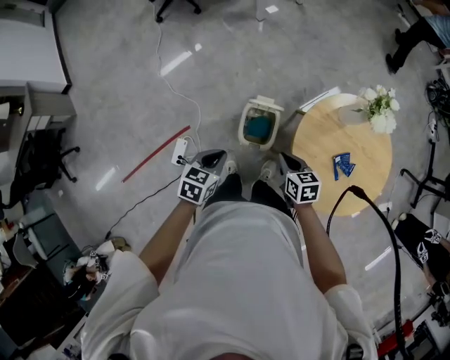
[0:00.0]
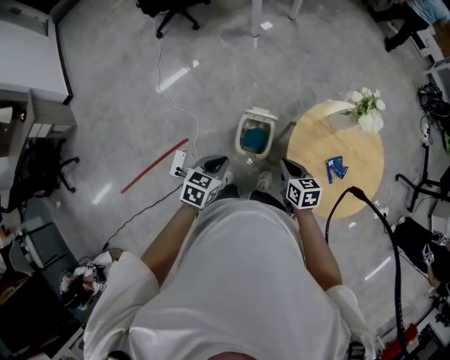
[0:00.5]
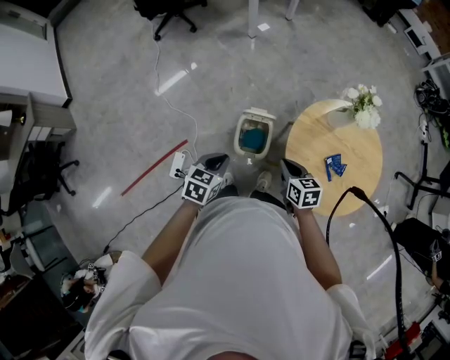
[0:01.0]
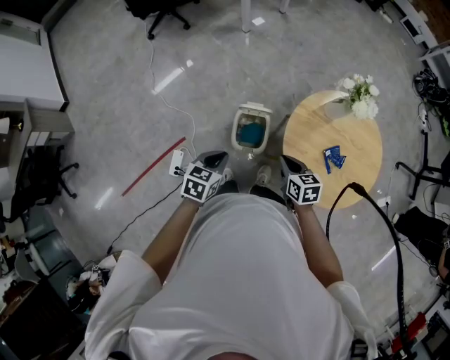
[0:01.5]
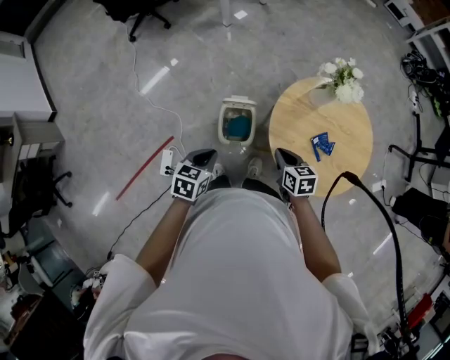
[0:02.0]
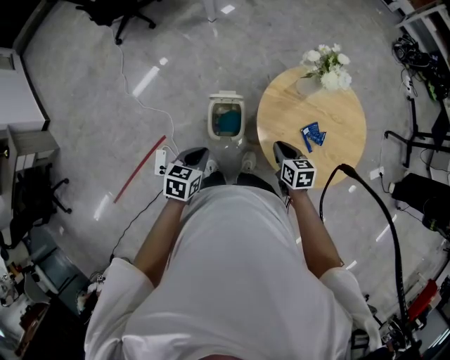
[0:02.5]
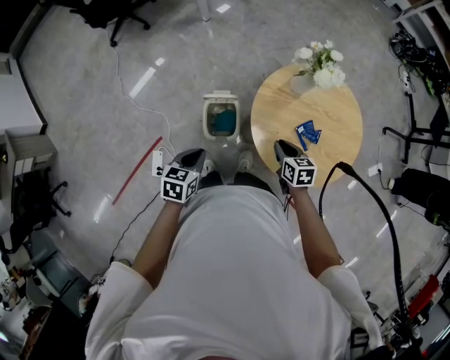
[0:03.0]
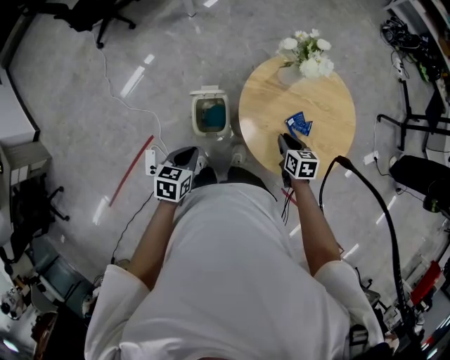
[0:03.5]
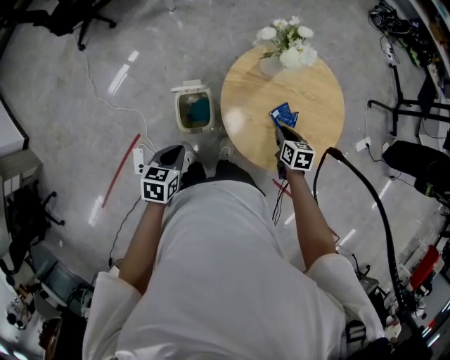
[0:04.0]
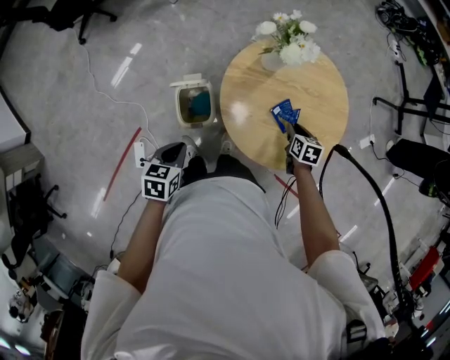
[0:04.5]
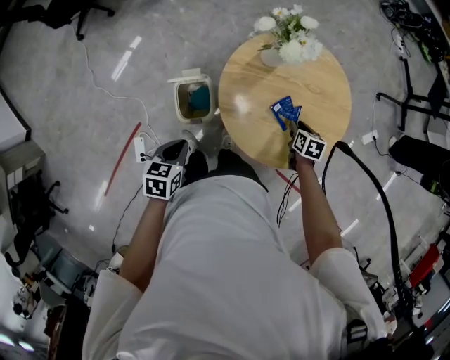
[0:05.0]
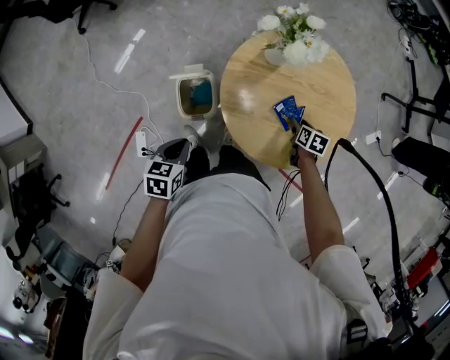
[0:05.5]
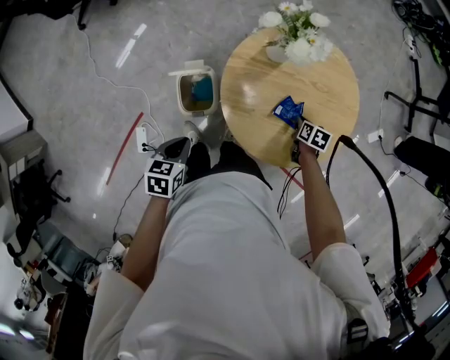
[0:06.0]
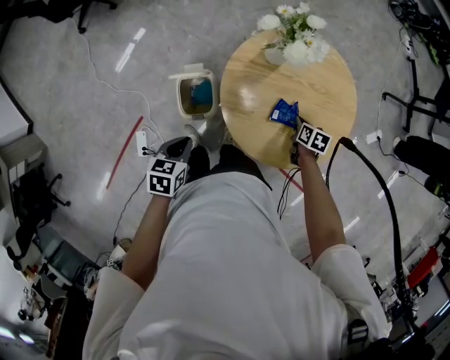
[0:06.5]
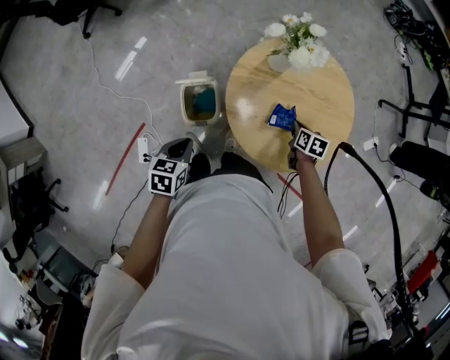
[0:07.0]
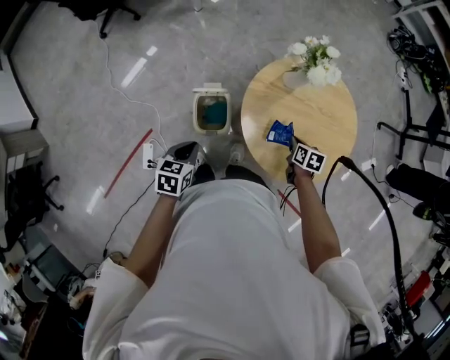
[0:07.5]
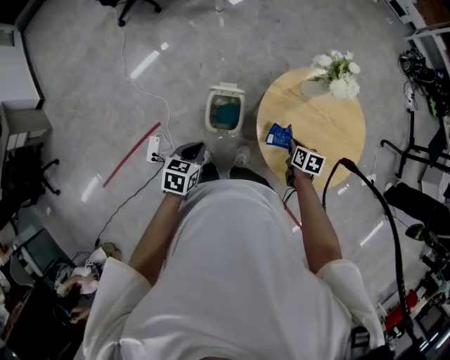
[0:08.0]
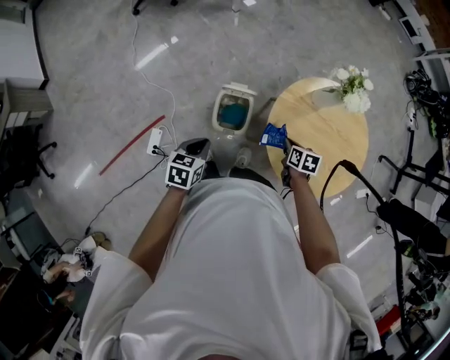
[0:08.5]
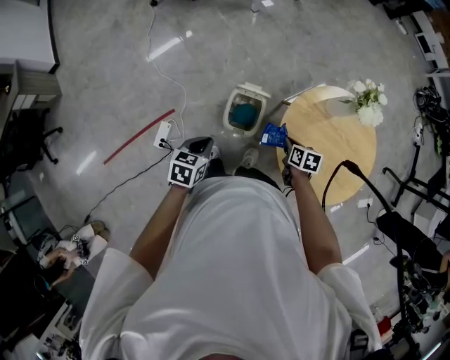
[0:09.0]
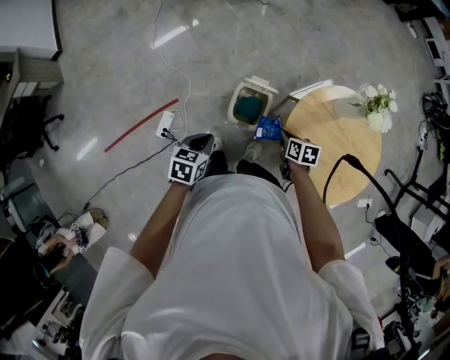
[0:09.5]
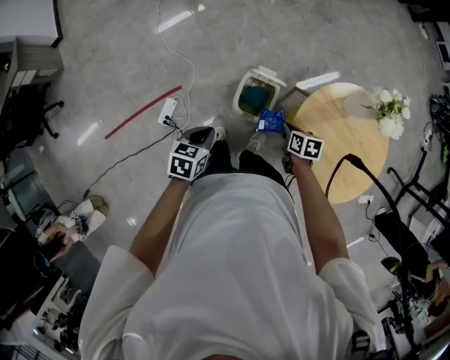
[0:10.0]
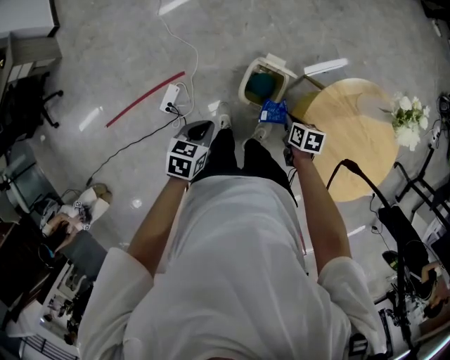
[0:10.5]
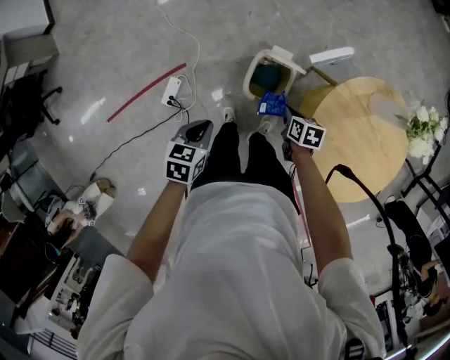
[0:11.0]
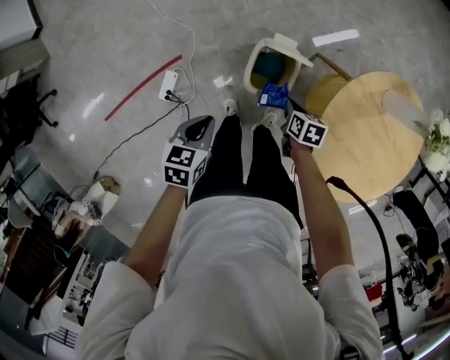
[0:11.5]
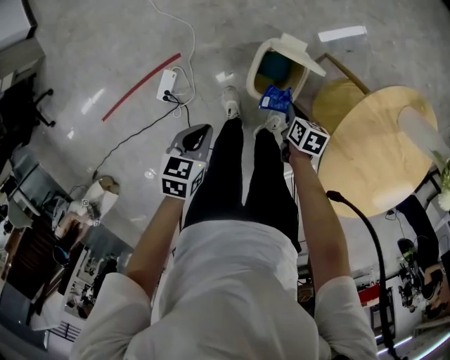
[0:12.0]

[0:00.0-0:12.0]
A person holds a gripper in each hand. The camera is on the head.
0:00.0 to 0:02.0: The right gripper shifts about 10 cm to the right; the left gripper shifts some 5 cm to the right.
0:02.0 to 0:04.0: The right gripper goes approximately 20 cm to the right, and turns by about 20 degrees. The left gripper is displaced to the right by roughly 5 cm.
0:04.0 to 0:06.0: The right gripper is displaced downward and to the right by roughly 15 cm, and opens and closes again.
0:06.0 to 0:08.0: The left gripper heads to the left, covering some 10 cm. The right gripper travels to the left and upward by about 20 cm.
0:08.0 to 0:10.0: The right gripper shifts roughly 20 cm to the left, and turns by roughly 20 degrees. Meanwhile the left gripper moves to the left, roughly 10 cm.
0:10.0 to 0:12.0: Both grippers travel together downward, some 20 cm.

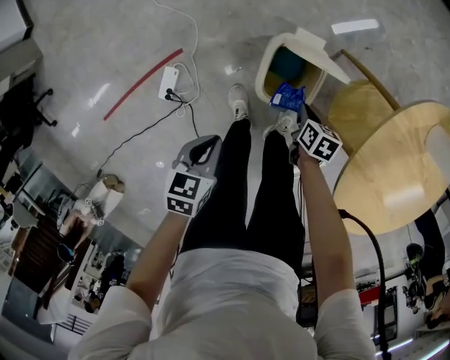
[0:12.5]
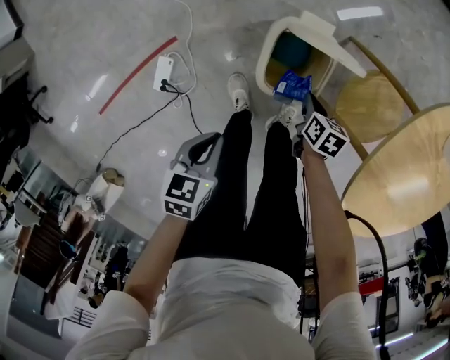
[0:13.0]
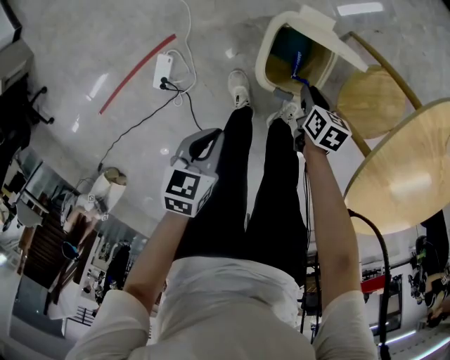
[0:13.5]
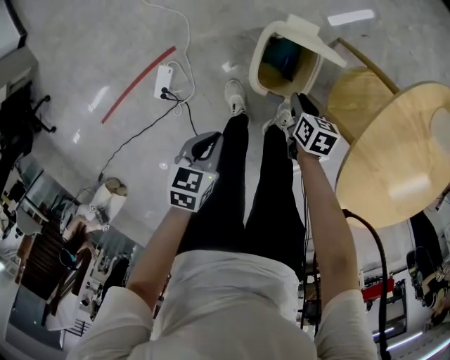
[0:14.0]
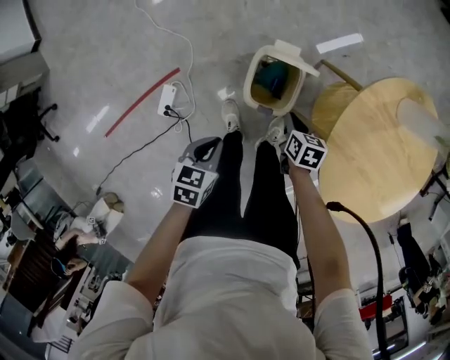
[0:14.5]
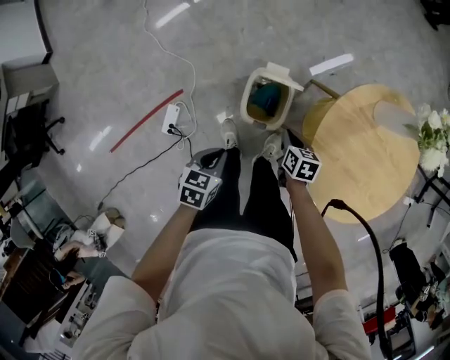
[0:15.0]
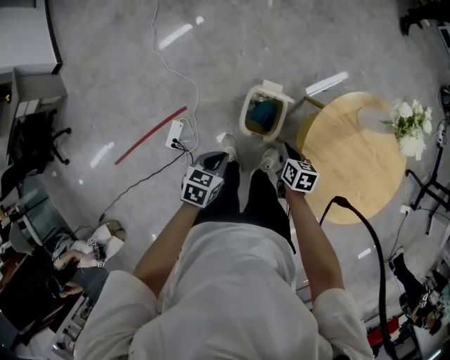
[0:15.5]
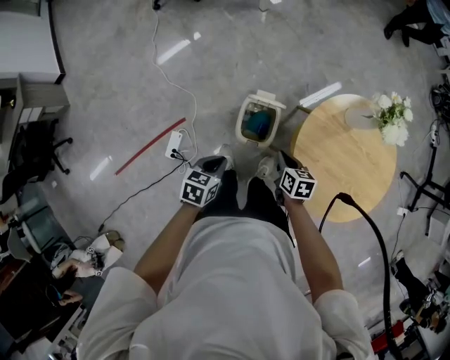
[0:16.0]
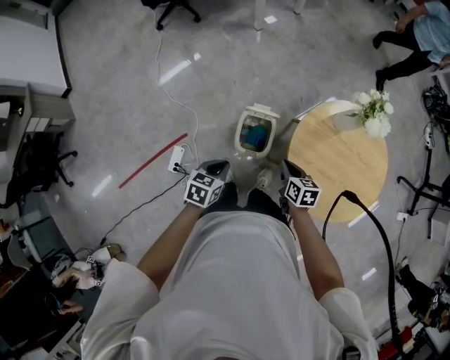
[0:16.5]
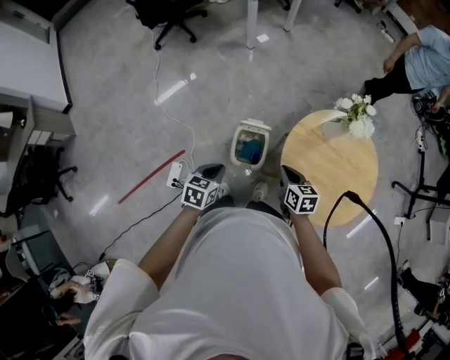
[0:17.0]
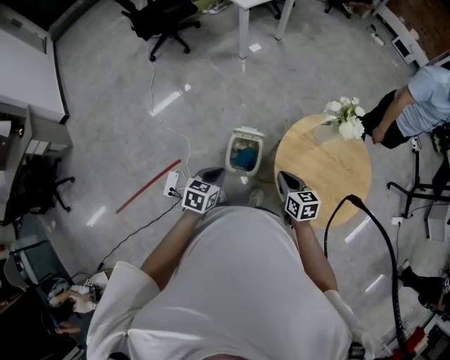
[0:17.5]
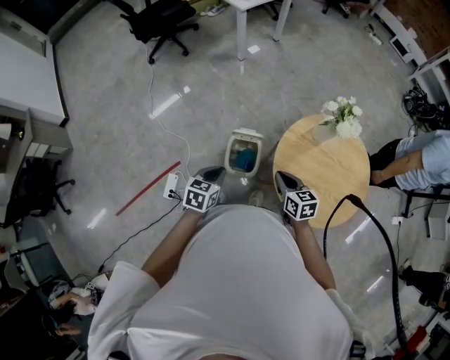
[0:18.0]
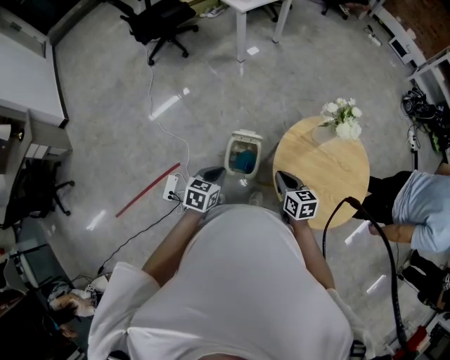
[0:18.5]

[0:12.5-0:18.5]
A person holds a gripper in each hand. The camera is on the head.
0:12.5 to 0:14.5: The left gripper moves about 5 cm. Meanwhile the right gripper shifts about 10 cm upward.
0:14.5 to 0:16.5: The grippers both shift upward by about 20 cm.
0:16.5 to 0:18.5: The right gripper moves upward, roughly 10 cm, while the left gripper is displaced upward by about 5 cm.

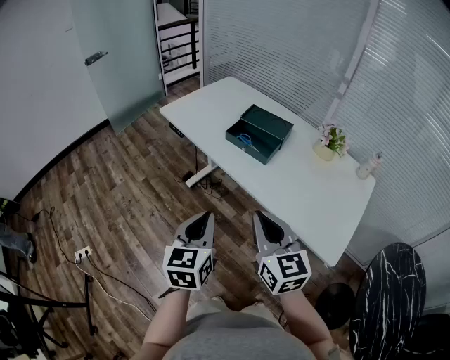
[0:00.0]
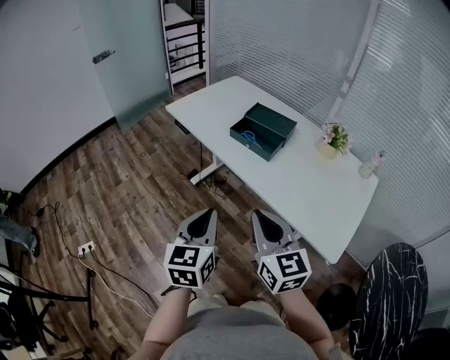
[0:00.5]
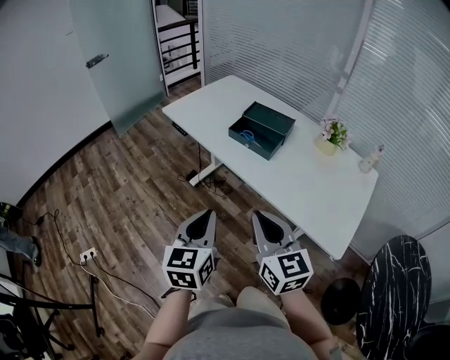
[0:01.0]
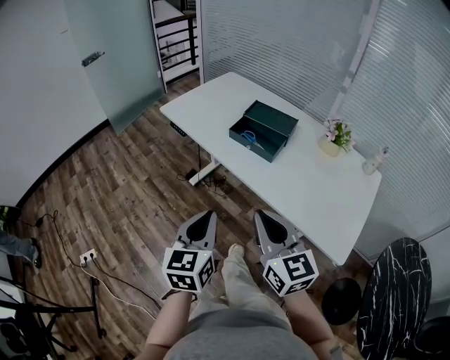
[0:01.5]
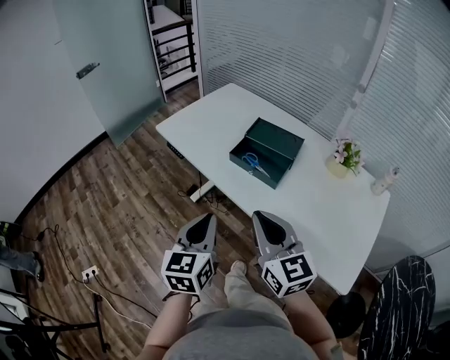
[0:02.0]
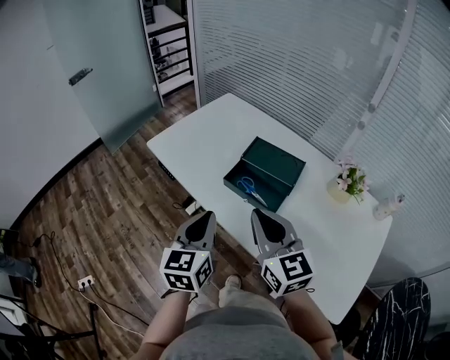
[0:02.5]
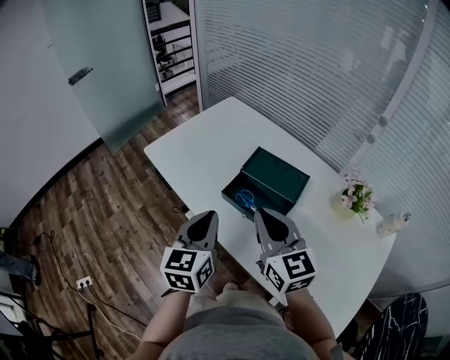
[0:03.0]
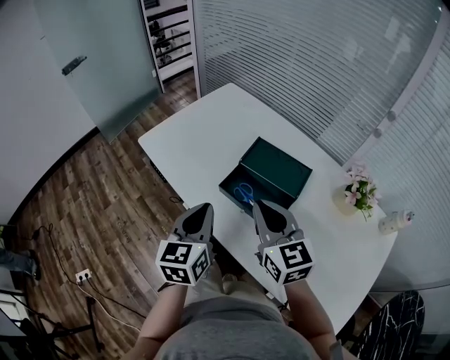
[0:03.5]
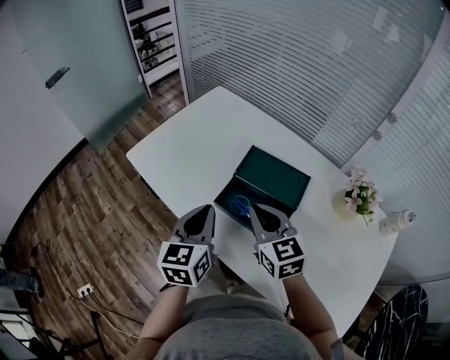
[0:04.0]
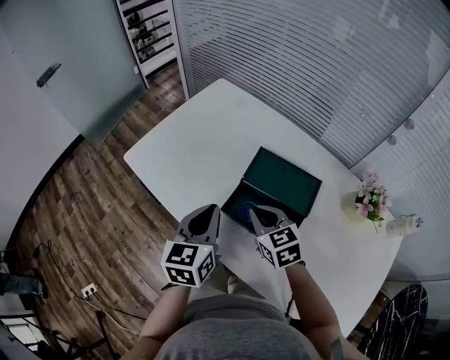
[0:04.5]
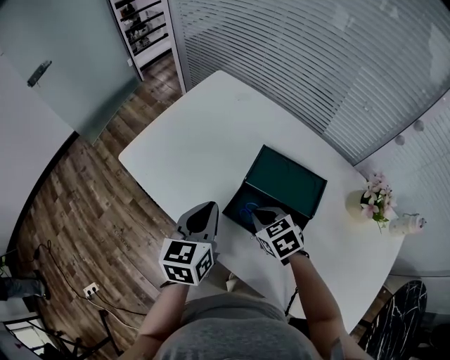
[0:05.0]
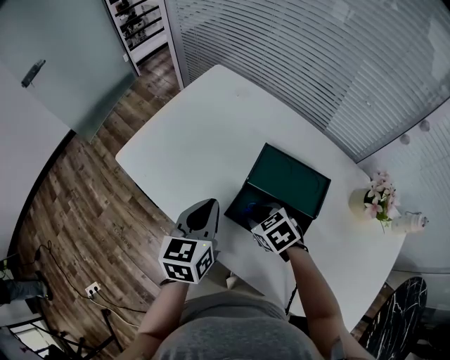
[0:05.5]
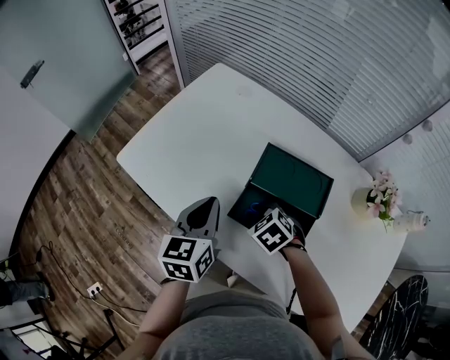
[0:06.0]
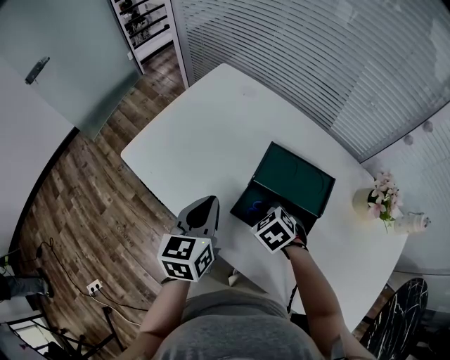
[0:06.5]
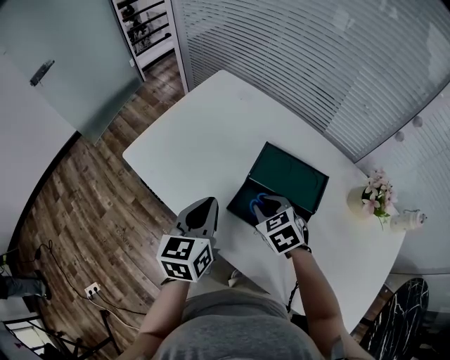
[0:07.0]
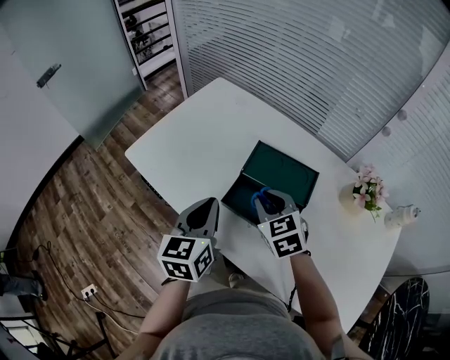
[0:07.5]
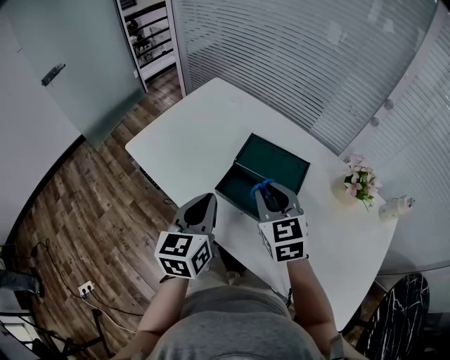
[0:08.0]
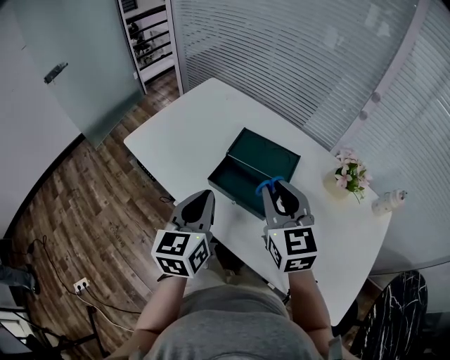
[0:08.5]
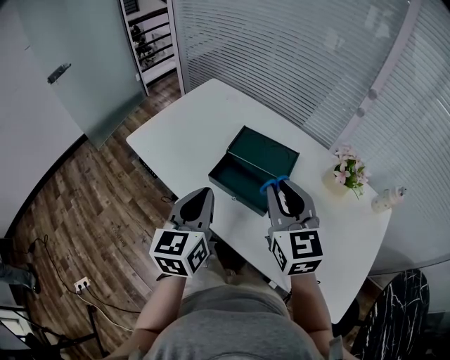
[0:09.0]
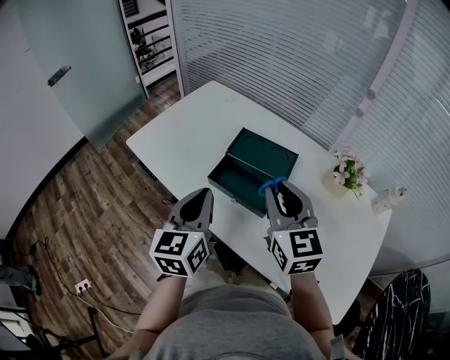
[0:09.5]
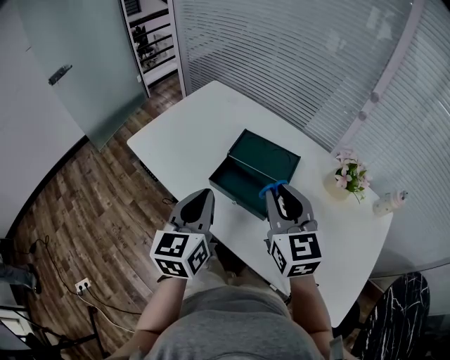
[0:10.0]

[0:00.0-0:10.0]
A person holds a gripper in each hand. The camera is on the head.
0:00.0 to 0:02.0: Both grippers move forward, roughly 15 cm.
0:02.0 to 0:04.0: Both grippers travel together forward, approximately 30 cm.
0:04.0 to 0:06.0: The right gripper travels downward and forward by some 20 cm, tilts its fingers some 40 degrees downward, and opens its fingers. Meanwhile the left gripper heads forward and downward, covering some 15 cm.
0:06.0 to 0:08.0: The left gripper is displaced backward and upward by about 15 cm. The right gripper is displaced upward by approximately 20 cm, and tilts its fingers approximately 40 degrees upward.
0:08.0 to 0:10.0: The left gripper moves backward, about 5 cm. The right gripper goes roughly 10 cm backward, upward and to the right.
